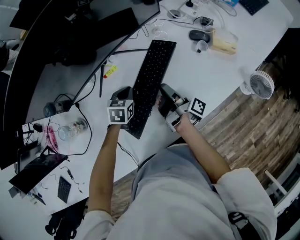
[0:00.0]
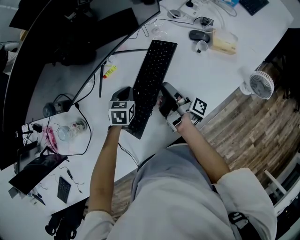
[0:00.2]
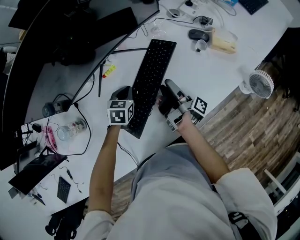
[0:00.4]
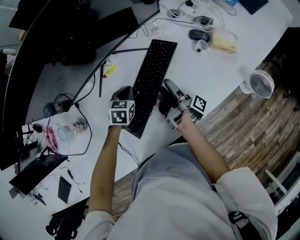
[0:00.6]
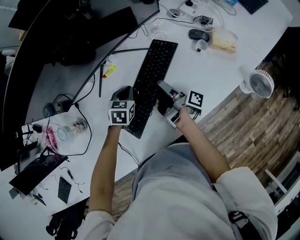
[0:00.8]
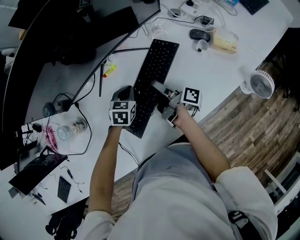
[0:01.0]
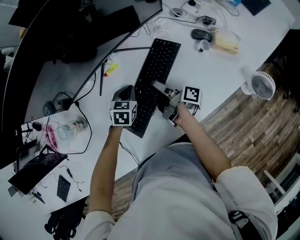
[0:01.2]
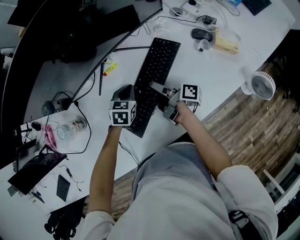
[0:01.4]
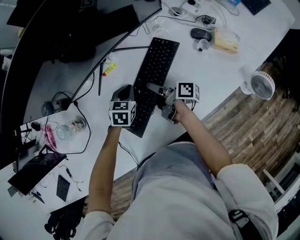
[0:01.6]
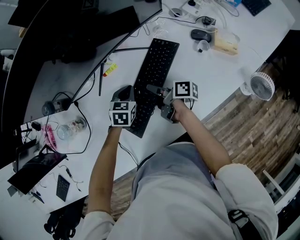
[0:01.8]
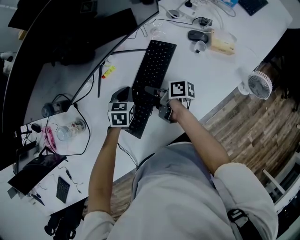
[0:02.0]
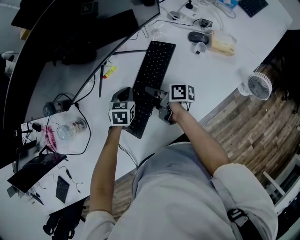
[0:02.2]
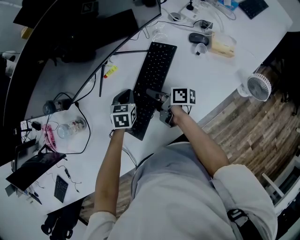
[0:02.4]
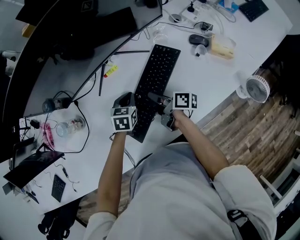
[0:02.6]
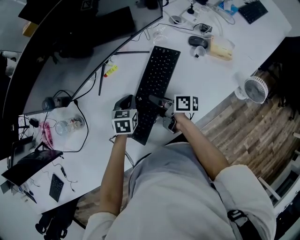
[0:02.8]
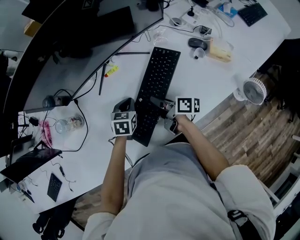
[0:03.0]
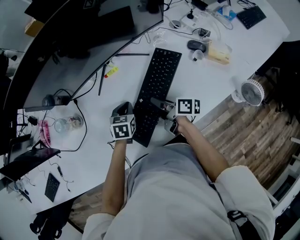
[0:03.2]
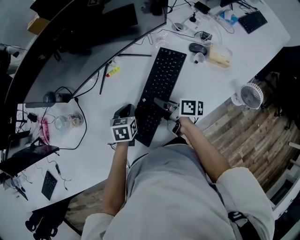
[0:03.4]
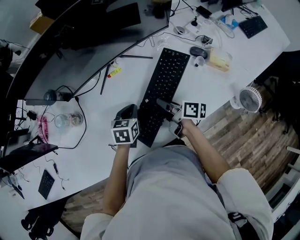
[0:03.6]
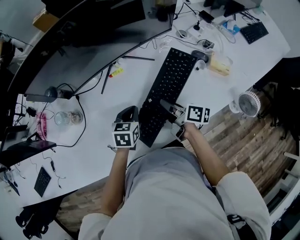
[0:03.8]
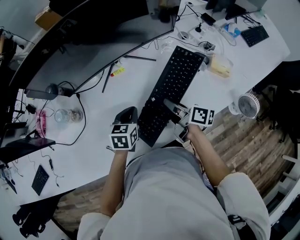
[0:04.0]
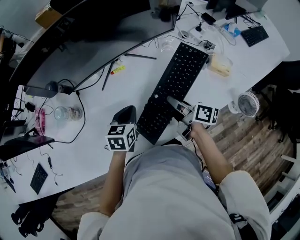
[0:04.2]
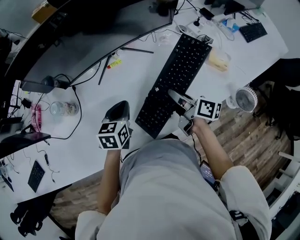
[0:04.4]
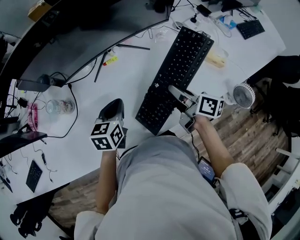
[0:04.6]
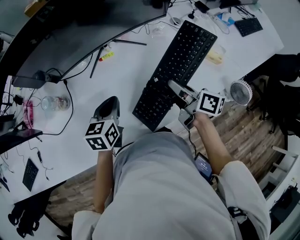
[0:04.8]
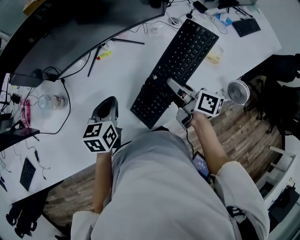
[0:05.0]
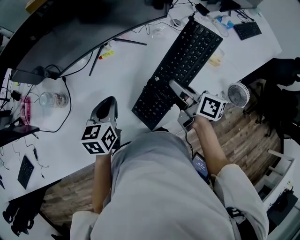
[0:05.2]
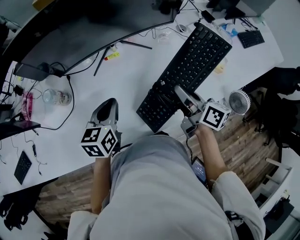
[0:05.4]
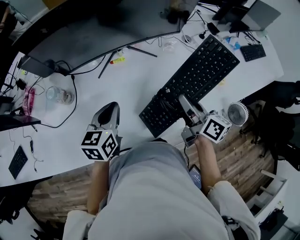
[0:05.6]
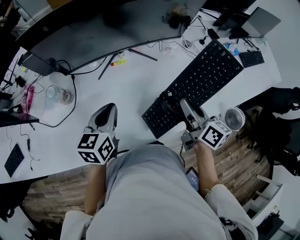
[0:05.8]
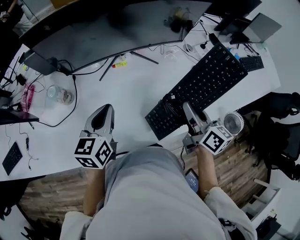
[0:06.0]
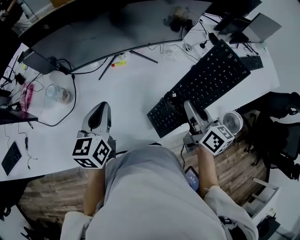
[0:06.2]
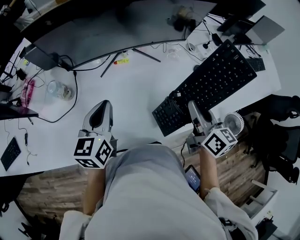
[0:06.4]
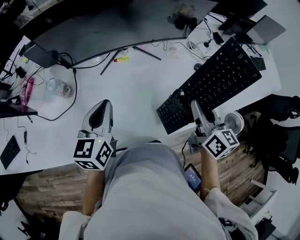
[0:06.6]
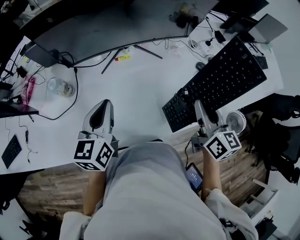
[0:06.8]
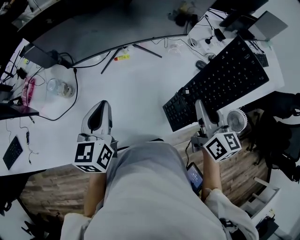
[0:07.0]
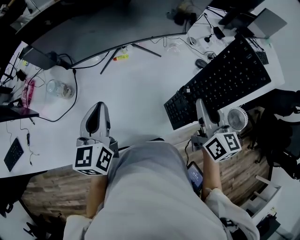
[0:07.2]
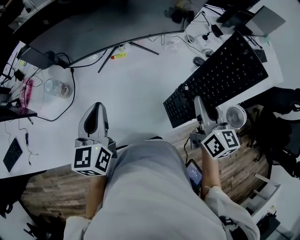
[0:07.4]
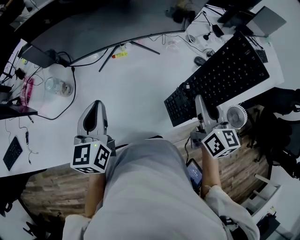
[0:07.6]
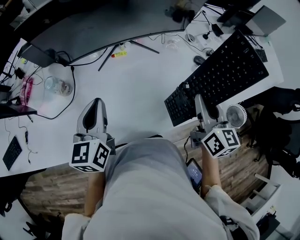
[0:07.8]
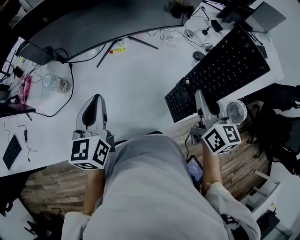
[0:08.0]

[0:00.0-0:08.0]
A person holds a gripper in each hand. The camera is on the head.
0:00.0 to 0:01.6: The right gripper heads to the left, covering approximately 5 cm, turns by about 30 degrees, and opens up.
0:01.6 to 0:03.2: Both grippers travel together backward, approximately 5 cm. The right gripper closes up.
0:03.2 to 0:04.8: The left gripper travels upward and backward by approximately 15 cm, and changes its angle by approximately 20 degrees. The right gripper shifts some 15 cm upward and to the right.
0:04.8 to 0:06.4: Both grippers move upward, roughly 10 cm. The right gripper swivels about 30 degrees, while the left gripper changes its angle by approximately 20 degrees.
0:06.4 to 0:08.0: The grippers make only small movements.

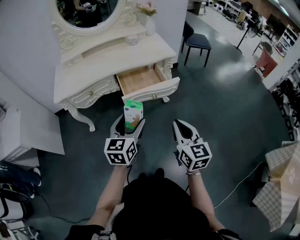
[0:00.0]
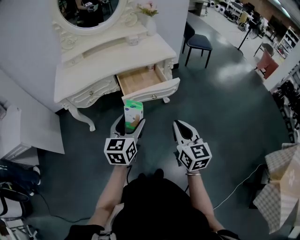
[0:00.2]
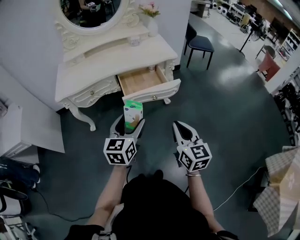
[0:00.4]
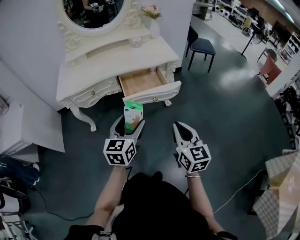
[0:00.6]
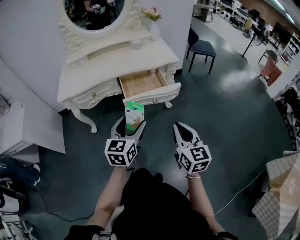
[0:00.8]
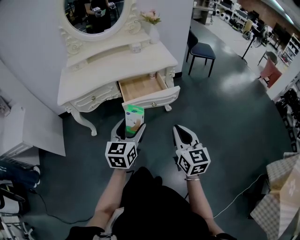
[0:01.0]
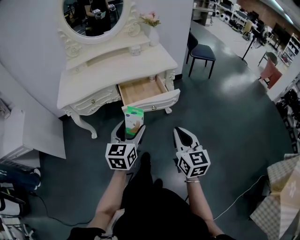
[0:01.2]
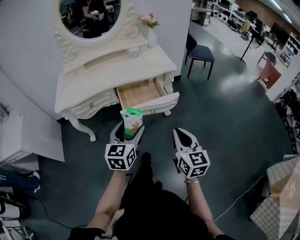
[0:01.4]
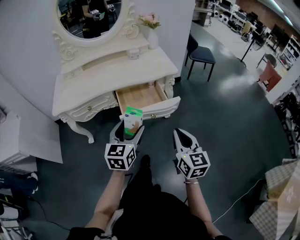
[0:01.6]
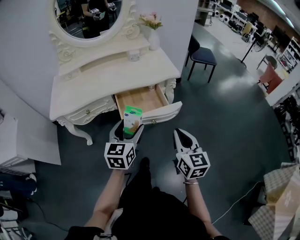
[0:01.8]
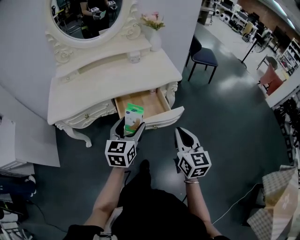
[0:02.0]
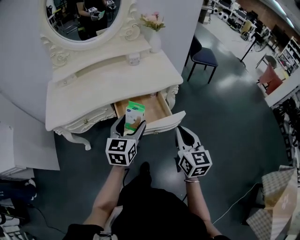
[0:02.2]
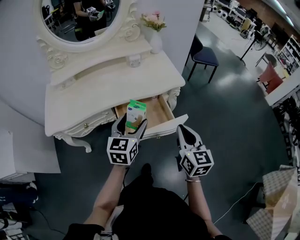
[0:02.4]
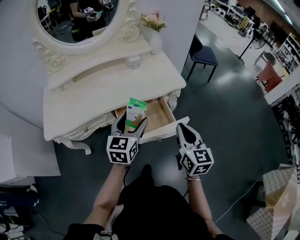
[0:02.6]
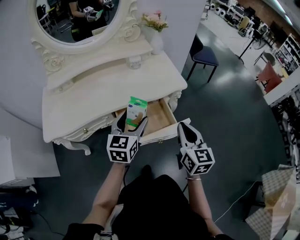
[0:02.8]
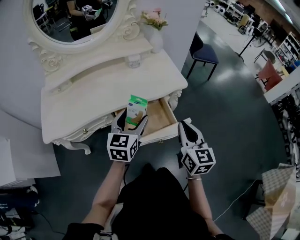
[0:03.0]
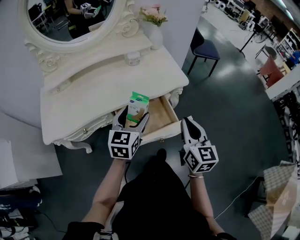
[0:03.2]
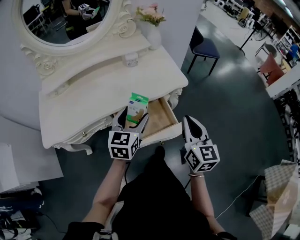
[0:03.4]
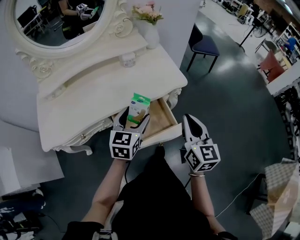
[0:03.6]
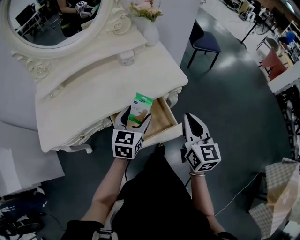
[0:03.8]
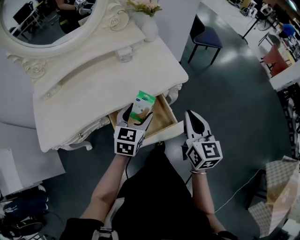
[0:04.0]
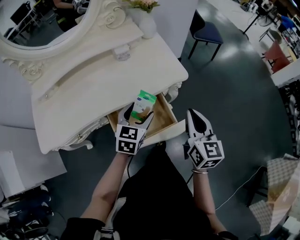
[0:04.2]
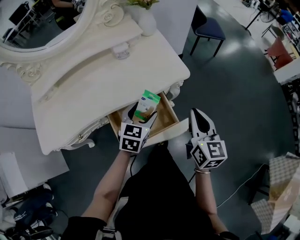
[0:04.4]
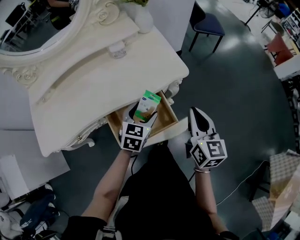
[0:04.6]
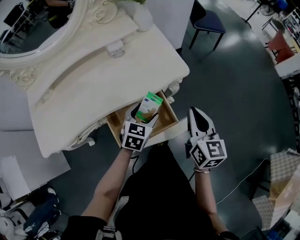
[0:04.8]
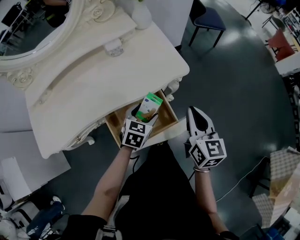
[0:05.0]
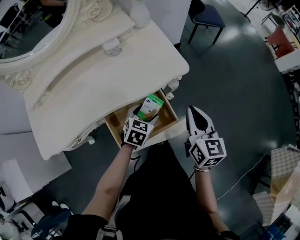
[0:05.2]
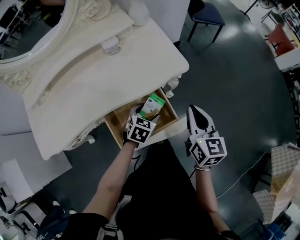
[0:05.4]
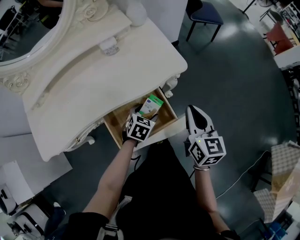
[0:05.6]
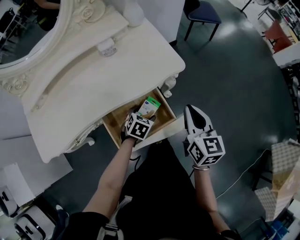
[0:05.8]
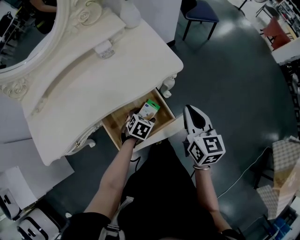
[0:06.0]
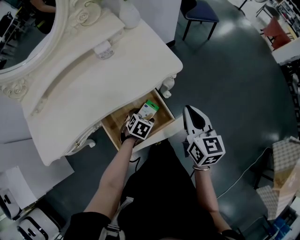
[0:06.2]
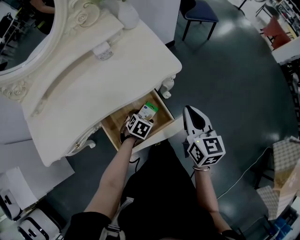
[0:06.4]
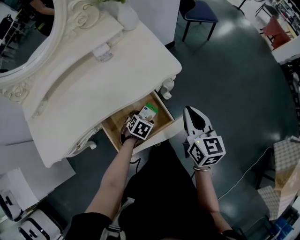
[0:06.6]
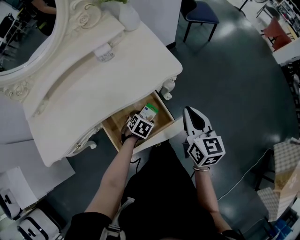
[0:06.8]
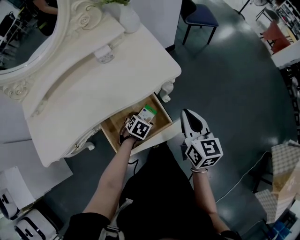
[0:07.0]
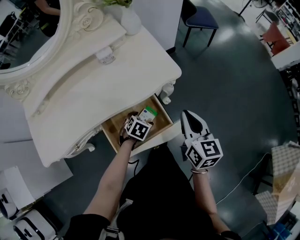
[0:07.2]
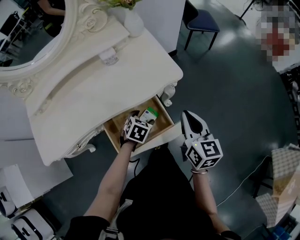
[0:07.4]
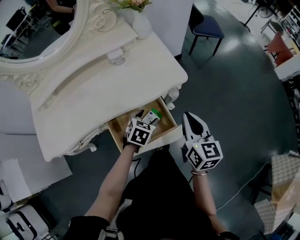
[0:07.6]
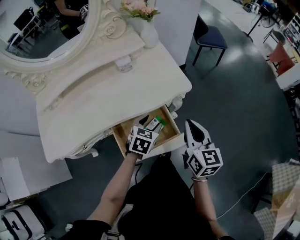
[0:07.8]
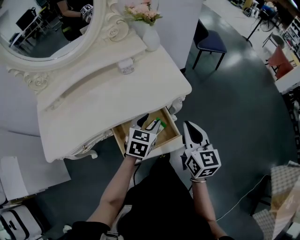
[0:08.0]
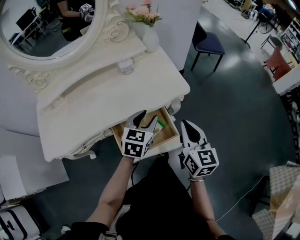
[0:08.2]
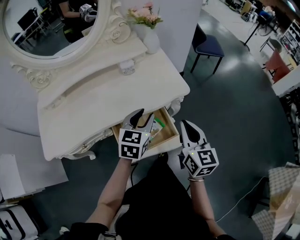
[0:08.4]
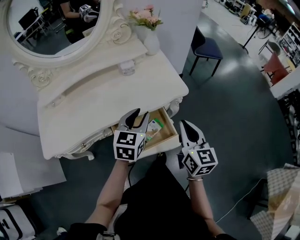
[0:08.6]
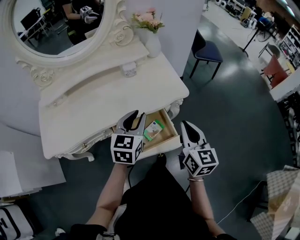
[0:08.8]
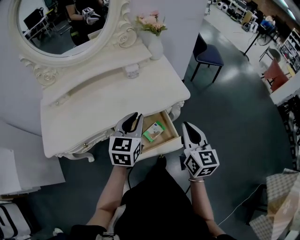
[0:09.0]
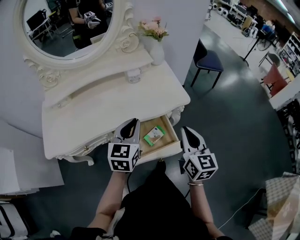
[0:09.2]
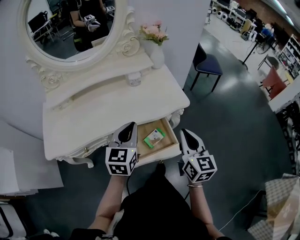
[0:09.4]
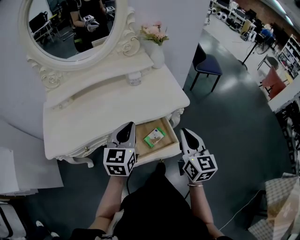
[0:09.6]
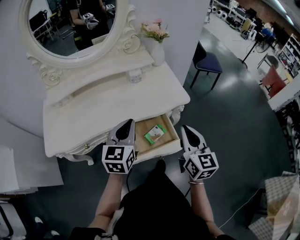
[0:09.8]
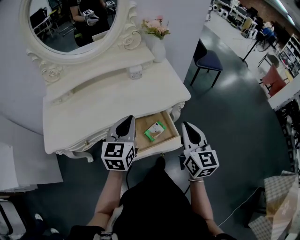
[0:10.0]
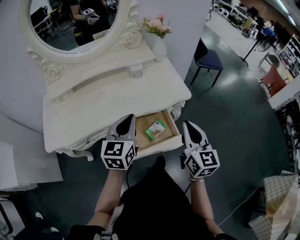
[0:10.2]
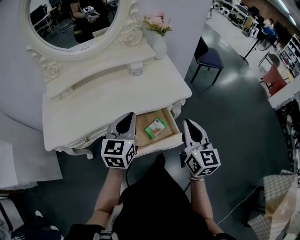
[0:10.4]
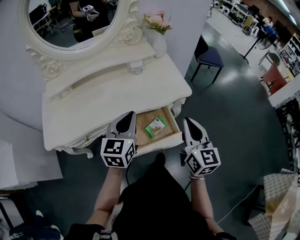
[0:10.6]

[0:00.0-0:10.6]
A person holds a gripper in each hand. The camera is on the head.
0:00.0 to 0:01.6: The grippers both shift forward by approximately 10 cm.
0:01.6 to 0:03.0: The two grippers go roughly 20 cm forward.
0:03.0 to 0:04.6: The right gripper goes roughly 10 cm forward and to the right. The left gripper is displaced downward, forward and to the right by about 15 cm, and turns by about 20 degrees.
0:04.6 to 0:06.0: The left gripper goes about 15 cm downward, and rotates roughly 30 degrees.
0:06.0 to 0:07.6: The left gripper travels upward by approximately 10 cm.
0:07.6 to 0:09.0: The left gripper goes some 20 cm upward, tilts its fingers approximately 30 degrees upward, and closes its fingers; the right gripper is displaced upward by about 5 cm.
0:09.0 to 0:10.6: The left gripper moves some 5 cm.

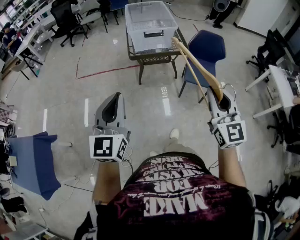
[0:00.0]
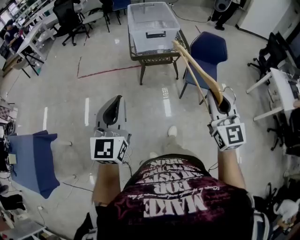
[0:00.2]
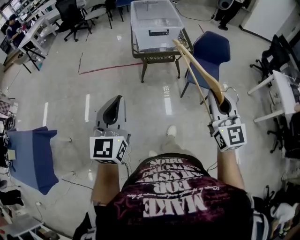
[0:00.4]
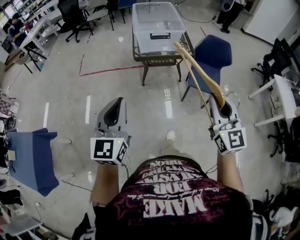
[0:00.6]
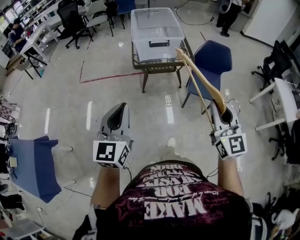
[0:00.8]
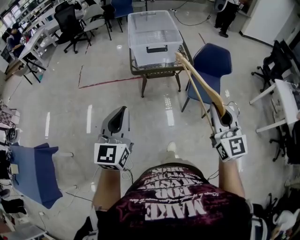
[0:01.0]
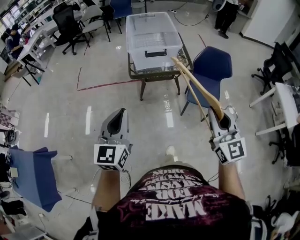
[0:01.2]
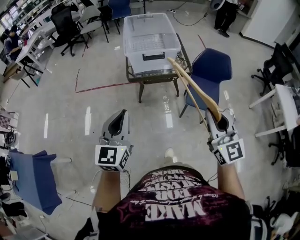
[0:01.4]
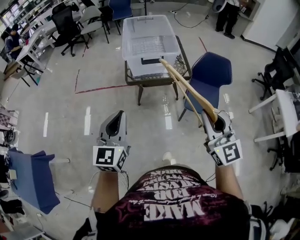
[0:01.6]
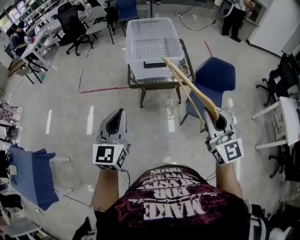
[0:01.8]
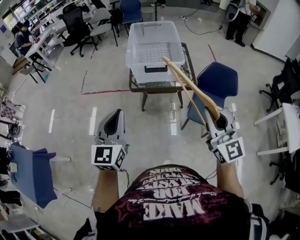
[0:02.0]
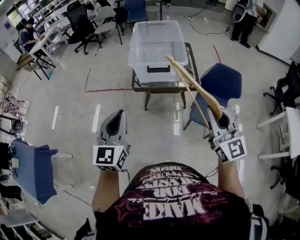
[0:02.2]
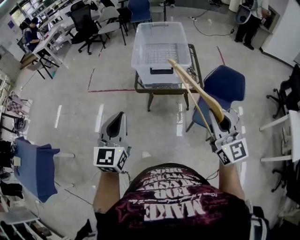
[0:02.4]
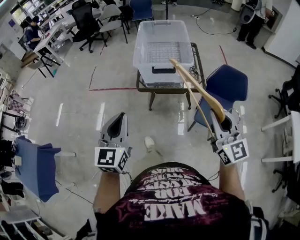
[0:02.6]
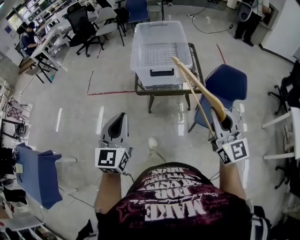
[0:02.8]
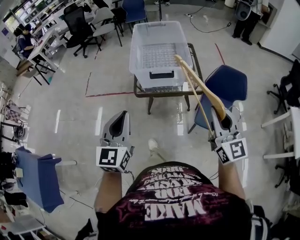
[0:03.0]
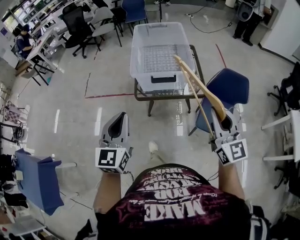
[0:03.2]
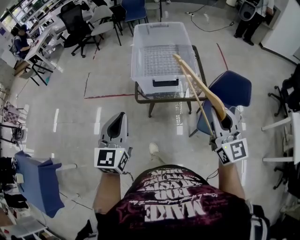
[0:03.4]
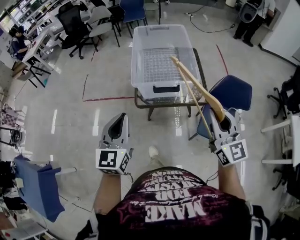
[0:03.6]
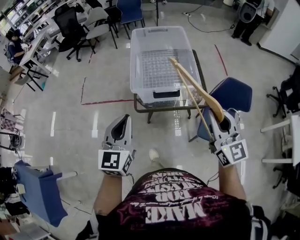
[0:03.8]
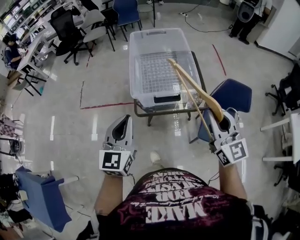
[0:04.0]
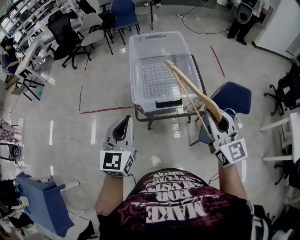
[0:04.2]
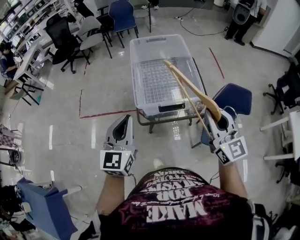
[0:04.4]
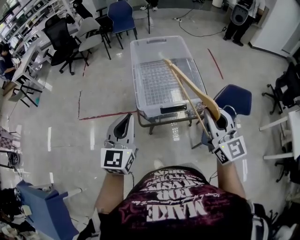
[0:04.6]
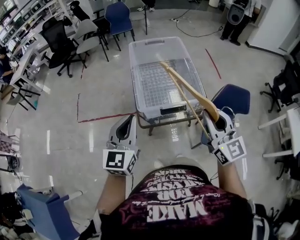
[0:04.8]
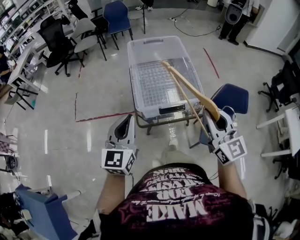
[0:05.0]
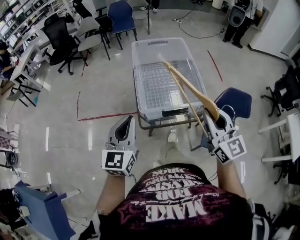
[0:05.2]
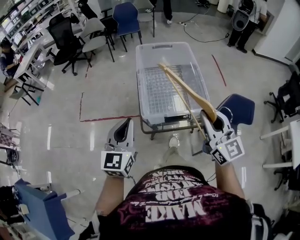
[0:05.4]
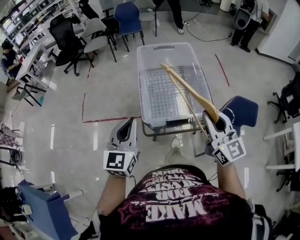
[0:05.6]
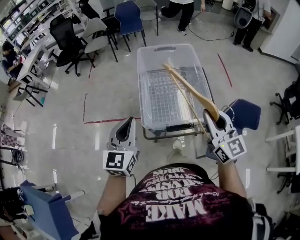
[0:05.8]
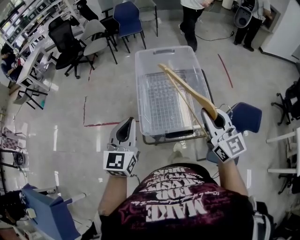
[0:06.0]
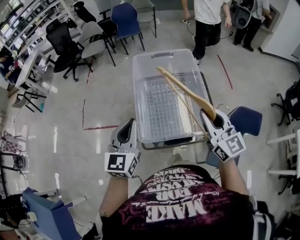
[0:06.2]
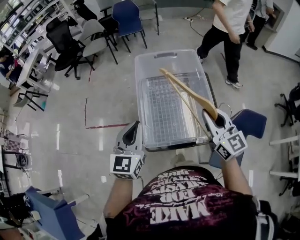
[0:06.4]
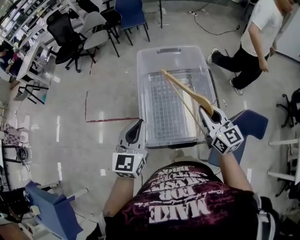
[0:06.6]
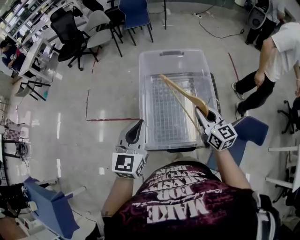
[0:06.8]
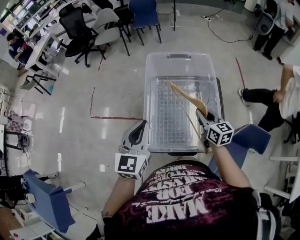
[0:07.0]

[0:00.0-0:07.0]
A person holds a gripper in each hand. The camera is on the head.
0:00.0 to 0:01.4: Both grippers move forward, approximately 15 cm.
0:01.4 to 0:02.8: The left gripper is displaced forward by about 10 cm, while the right gripper heads forward and to the right, covering about 15 cm.
0:02.8 to 0:04.2: The grippers both shift forward by about 25 cm.
0:04.2 to 0:05.6: Both grippers travel together forward, about 10 cm.
0:05.6 to 0:07.0: The right gripper moves forward and downward, approximately 30 cm, and turns by some 30 degrees; the left gripper travels forward by approximately 15 cm.
